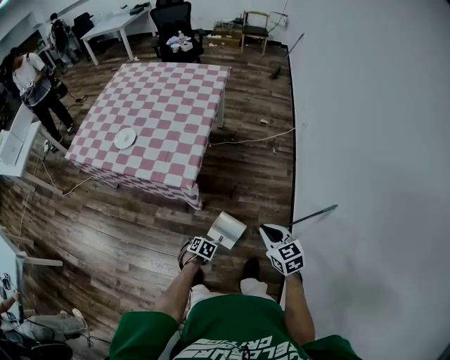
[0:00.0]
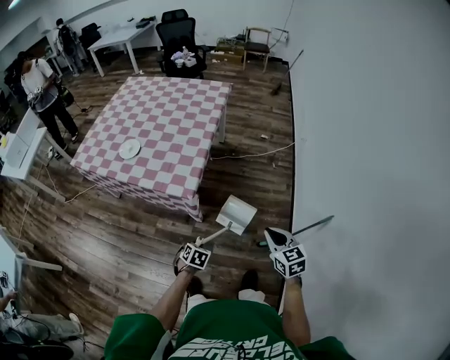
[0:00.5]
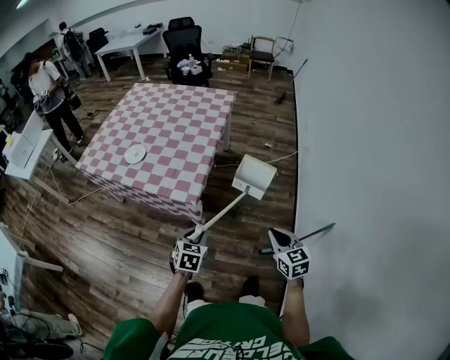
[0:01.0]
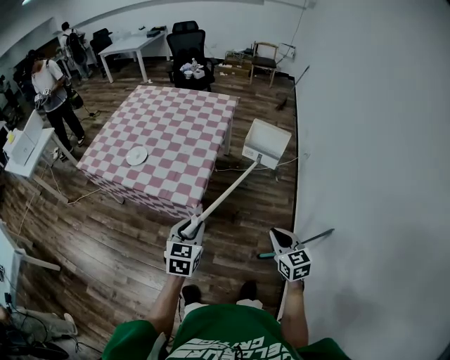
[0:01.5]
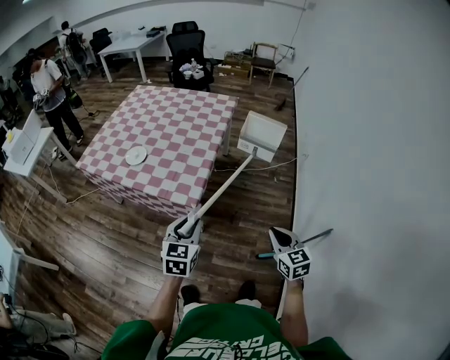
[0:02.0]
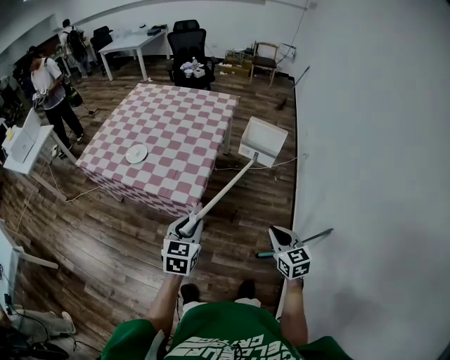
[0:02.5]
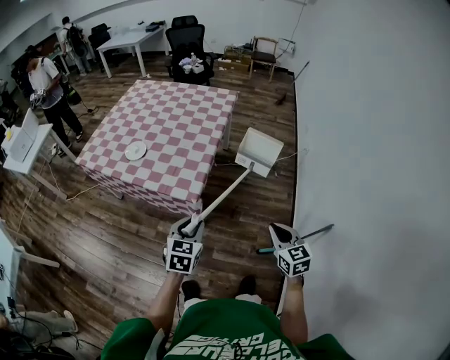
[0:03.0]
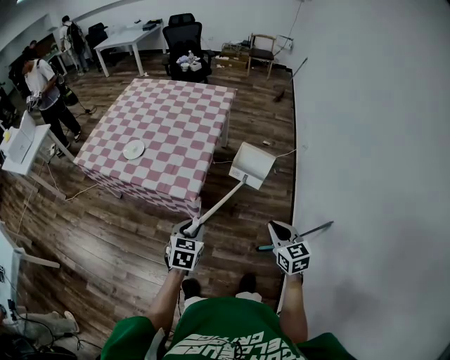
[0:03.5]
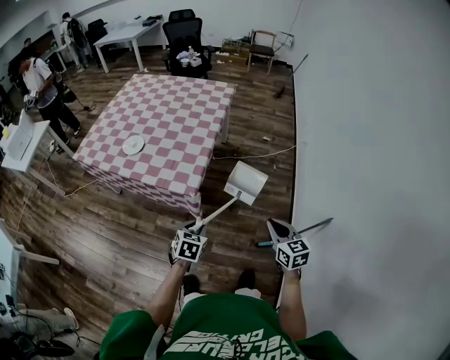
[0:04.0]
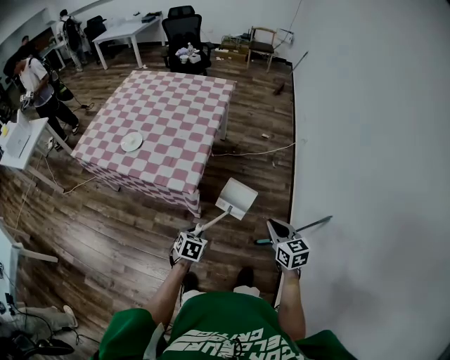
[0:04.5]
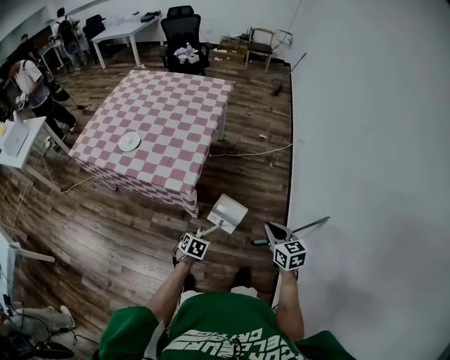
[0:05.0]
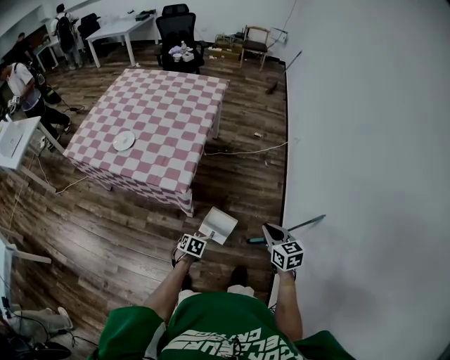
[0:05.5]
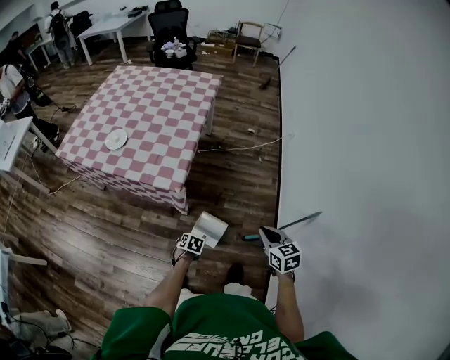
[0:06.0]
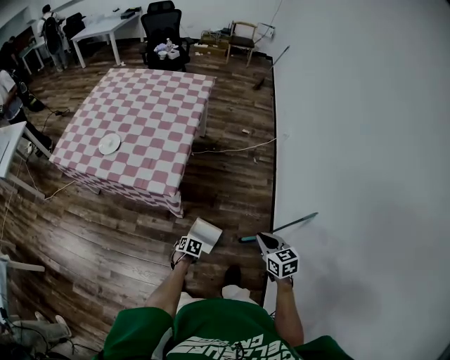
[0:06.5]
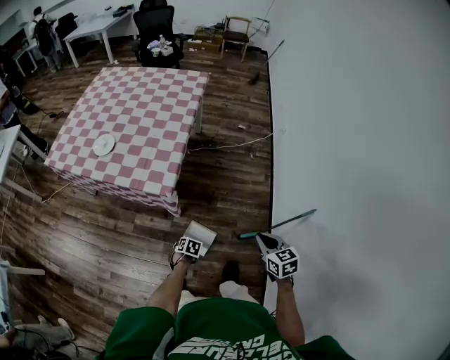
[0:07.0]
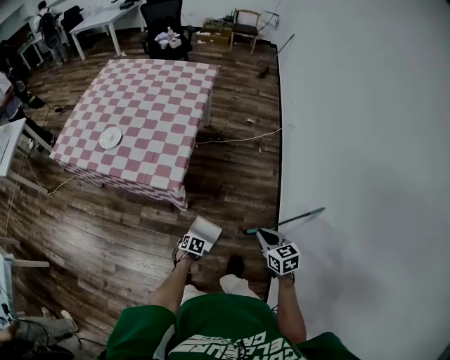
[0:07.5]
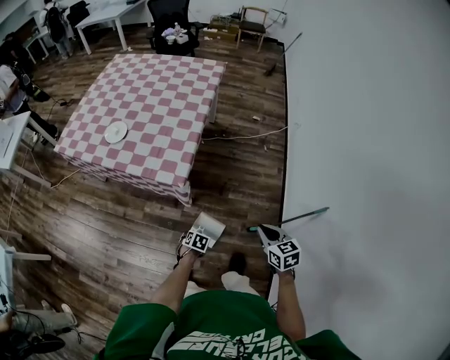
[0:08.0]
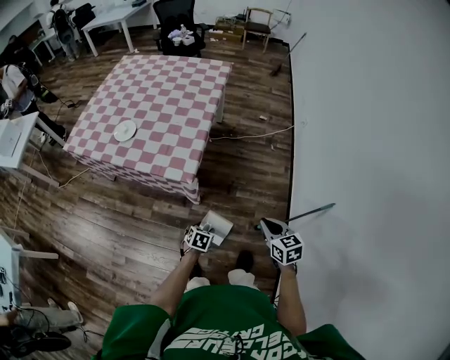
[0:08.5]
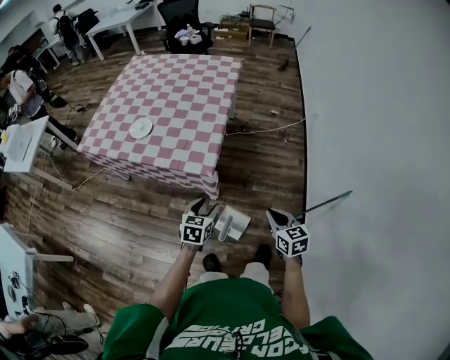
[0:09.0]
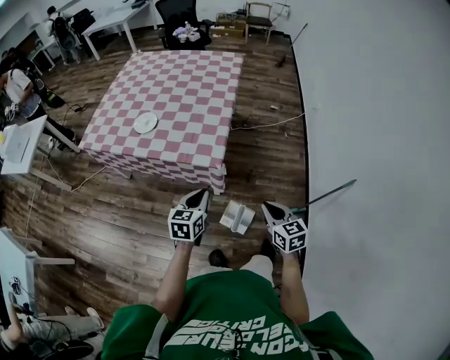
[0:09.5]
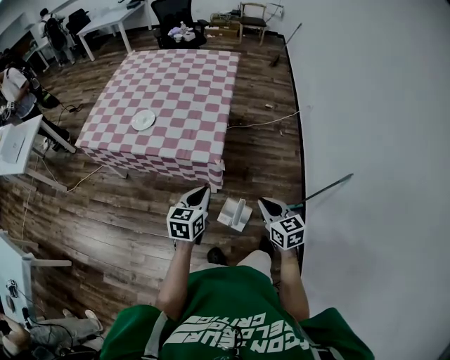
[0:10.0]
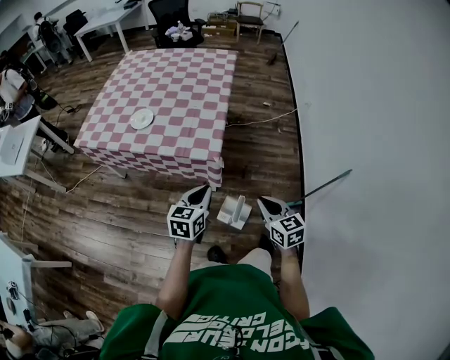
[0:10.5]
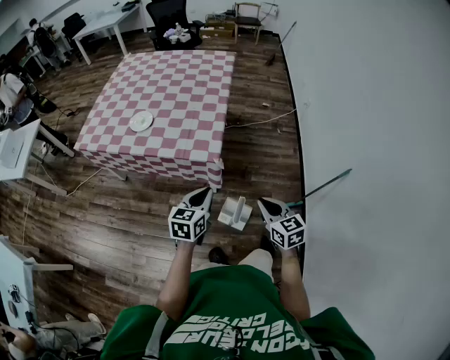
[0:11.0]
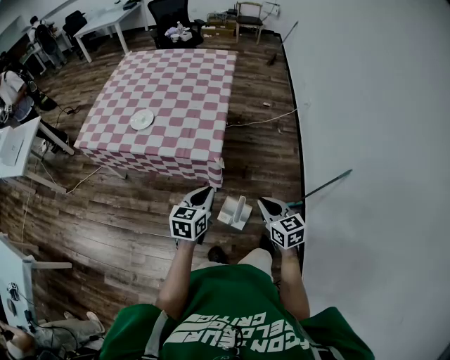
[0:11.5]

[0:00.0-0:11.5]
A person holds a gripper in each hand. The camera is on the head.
0:00.0 to 0:02.0: The right gripper goes about 10 cm upward. The left gripper goes roughly 40 cm upward, and points its fingers approximately 60 degrees further upward.
0:02.0 to 0:04.0: The left gripper moves downward, some 15 cm, and rotates approximately 20 degrees.
0:04.0 to 0:06.0: The right gripper travels downward by about 5 cm. Meanwhile the left gripper goes about 25 cm downward, and changes its angle by approximately 30 degrees.
0:06.0 to 0:07.5: There are only small adjustments of the grippers.
0:07.5 to 0:09.5: The right gripper is displaced to the left by some 20 cm. The left gripper moves upward and to the left, about 35 cm, tips its fingers upward by some 50 degrees, and opens and closes again.
0:09.5 to 0:11.5: The grippers make only small movements.

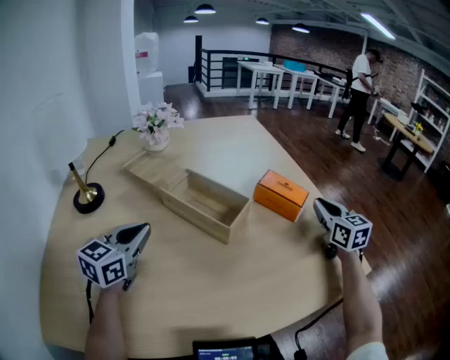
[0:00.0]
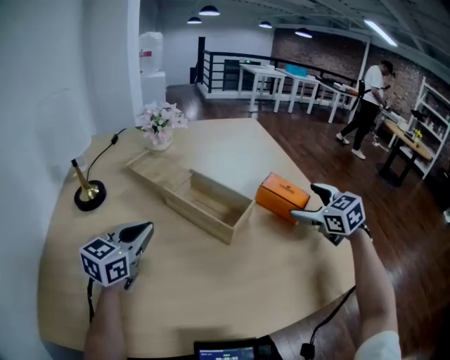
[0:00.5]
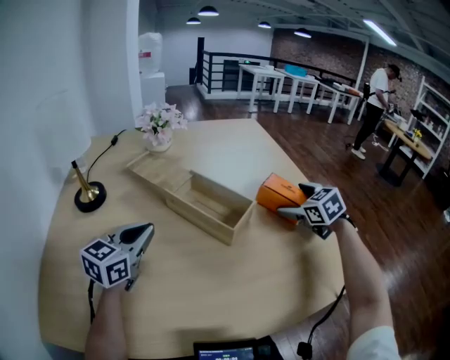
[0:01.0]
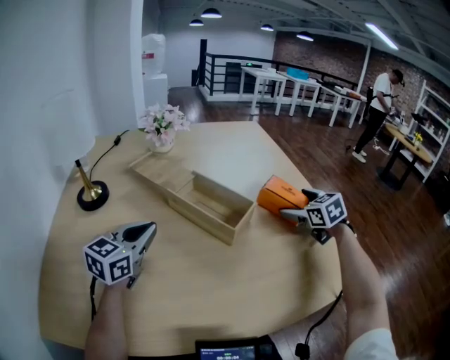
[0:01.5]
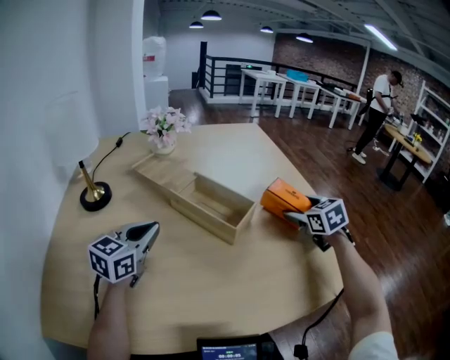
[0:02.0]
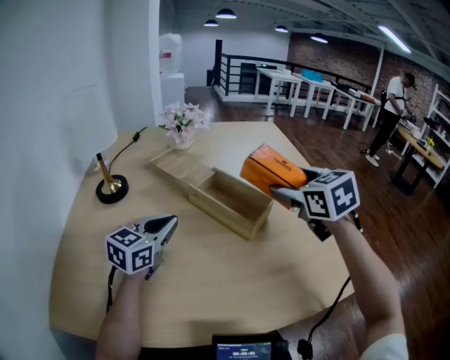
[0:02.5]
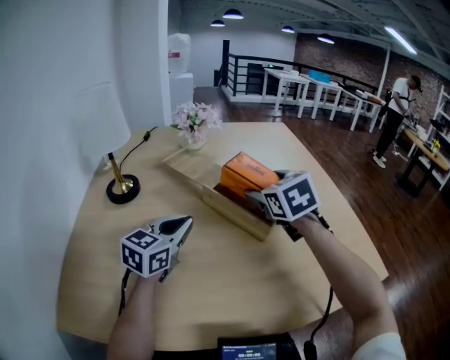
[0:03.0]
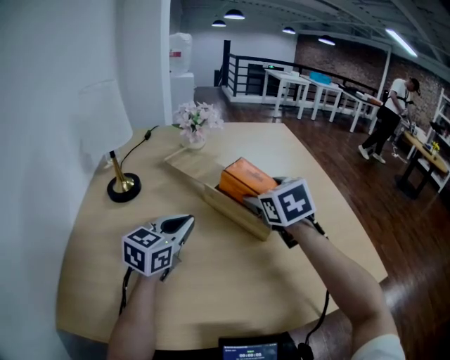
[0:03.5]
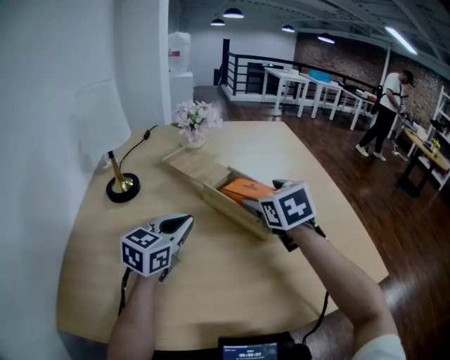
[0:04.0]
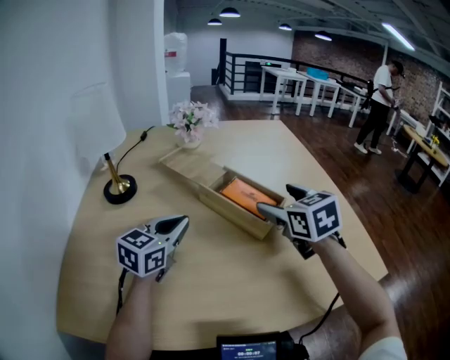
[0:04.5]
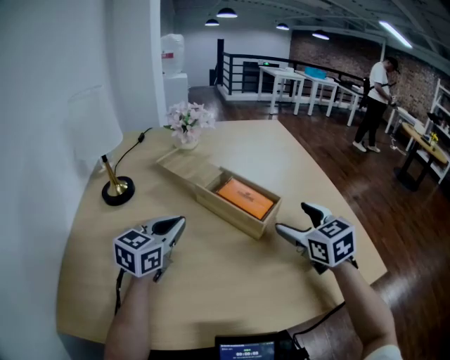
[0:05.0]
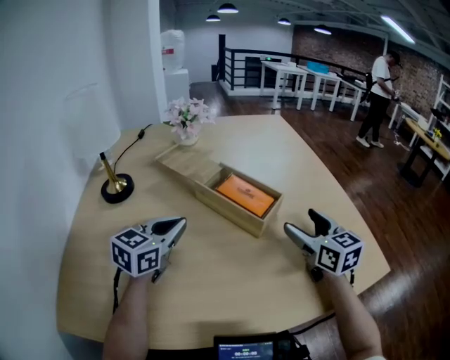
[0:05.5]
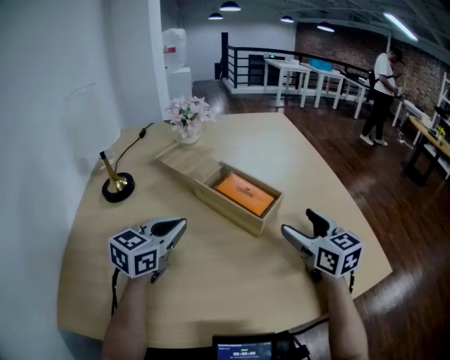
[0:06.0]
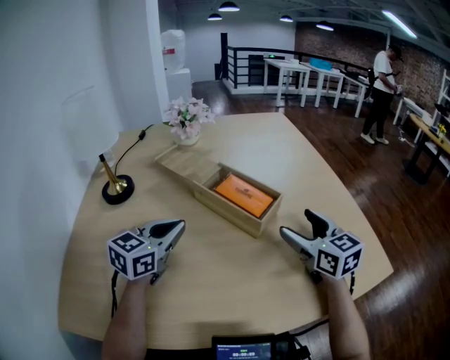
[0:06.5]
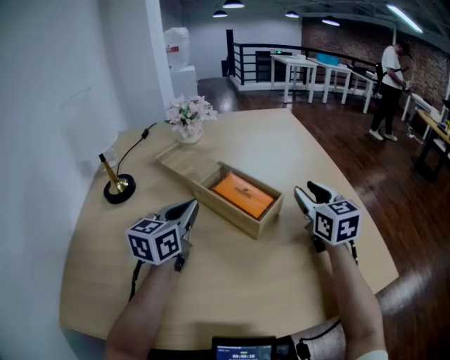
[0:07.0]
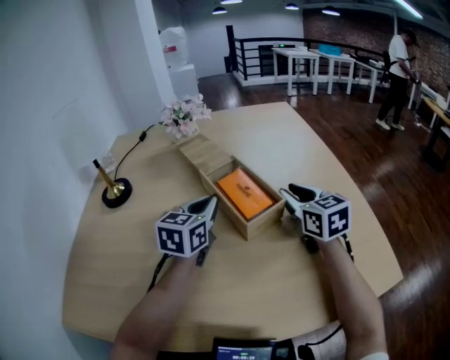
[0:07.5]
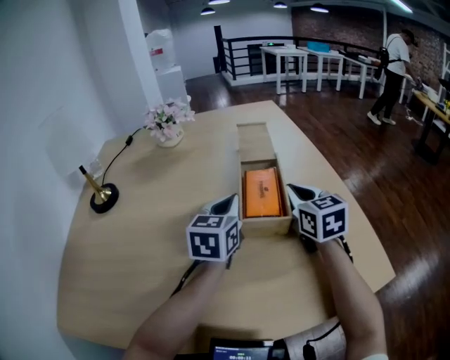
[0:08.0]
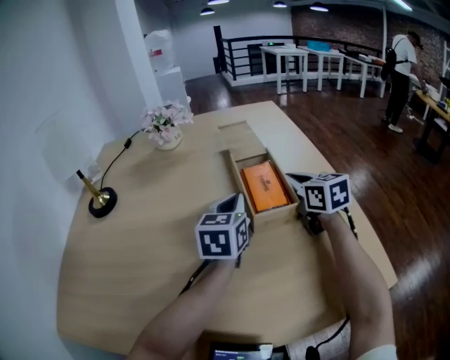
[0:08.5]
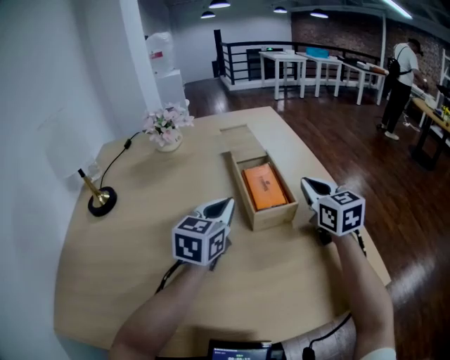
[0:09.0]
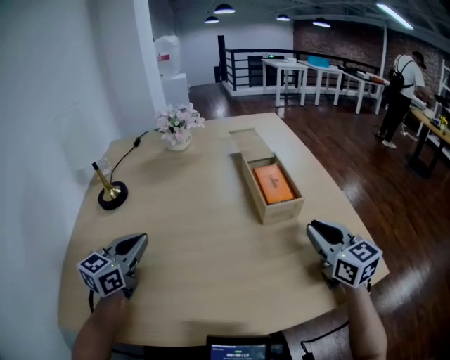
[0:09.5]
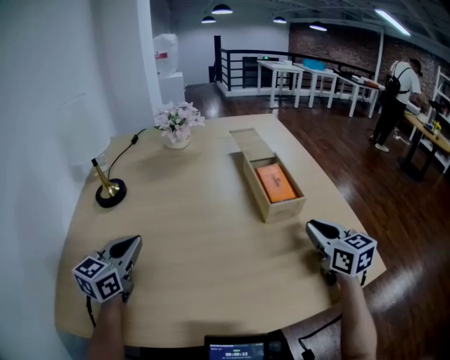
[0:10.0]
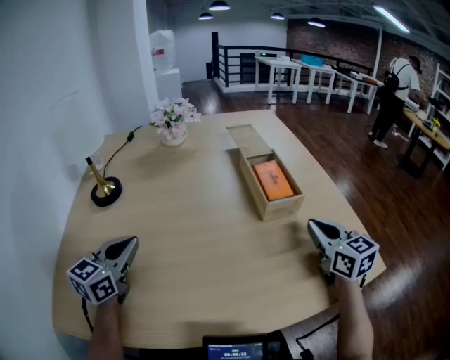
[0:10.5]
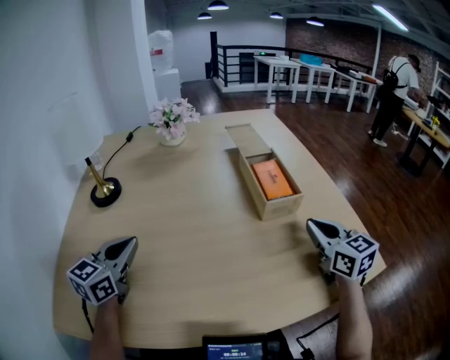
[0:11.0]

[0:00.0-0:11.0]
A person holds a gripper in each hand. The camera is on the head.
0:00.0 to 0:02.0: The right gripper travels to the left by approximately 10 cm, changes its angle by some 30 degrees, and opens.
0:02.0 to 0:03.5: The right gripper moves to the left, some 25 cm.
0:03.5 to 0:05.5: The right gripper shifts some 15 cm to the right and backward, and swivels about 30 degrees.
0:05.5 to 0:07.5: The left gripper is displaced to the right and forward by approximately 15 cm, while the right gripper is displaced forward by approximately 10 cm, and closes its fingers.
0:07.5 to 0:09.0: Both grippers travel together to the right, some 10 cm.
0:09.0 to 0:11.0: The right gripper travels backward by about 15 cm, while the left gripper heads to the left and backward, covering about 30 cm.

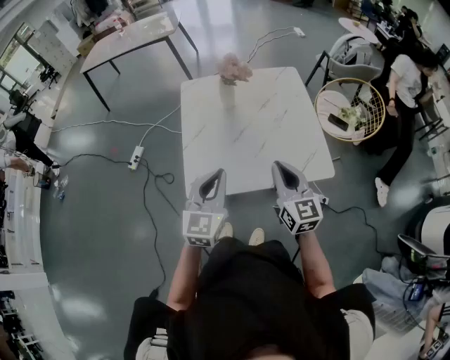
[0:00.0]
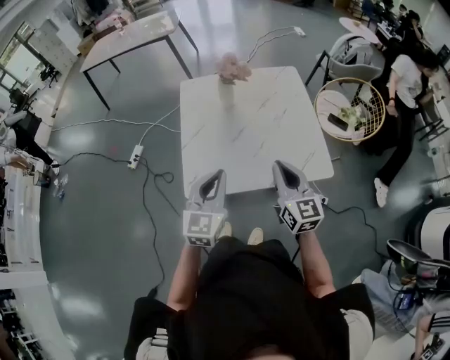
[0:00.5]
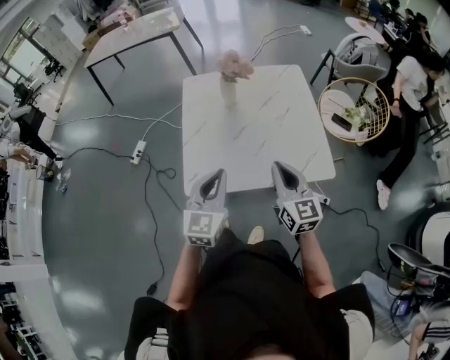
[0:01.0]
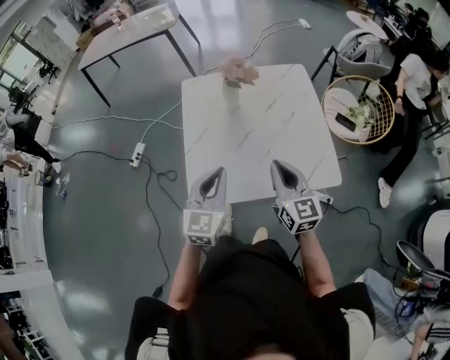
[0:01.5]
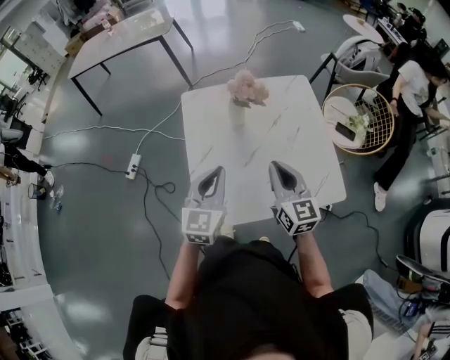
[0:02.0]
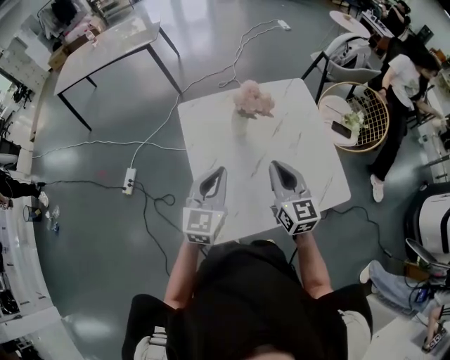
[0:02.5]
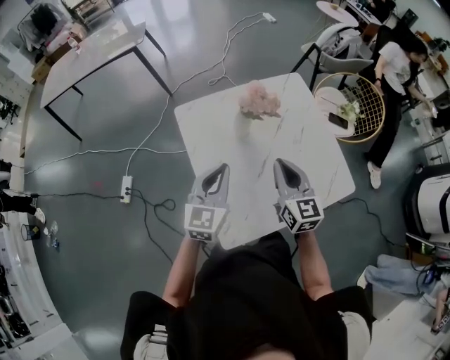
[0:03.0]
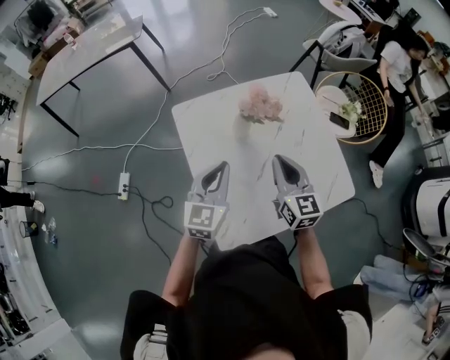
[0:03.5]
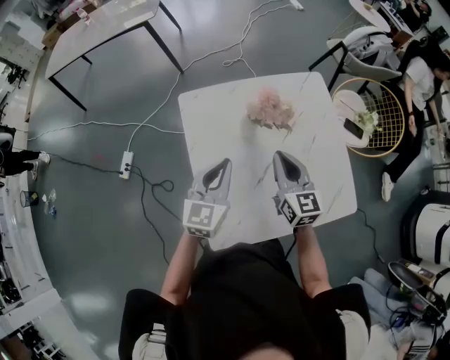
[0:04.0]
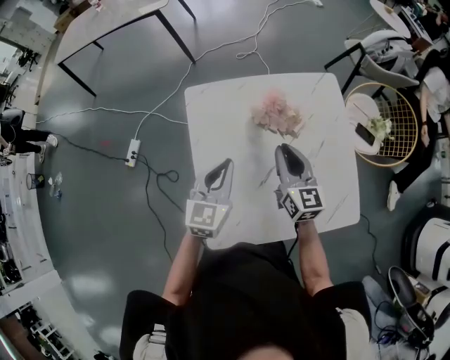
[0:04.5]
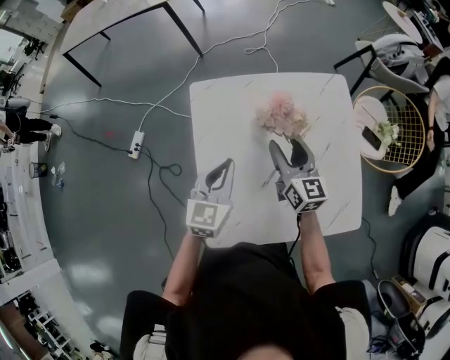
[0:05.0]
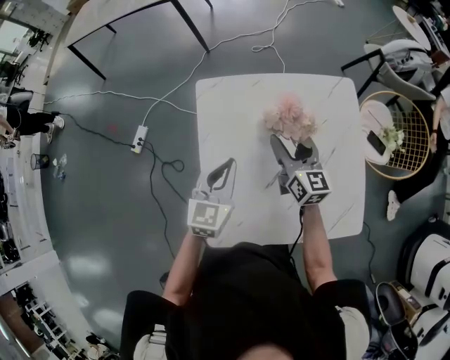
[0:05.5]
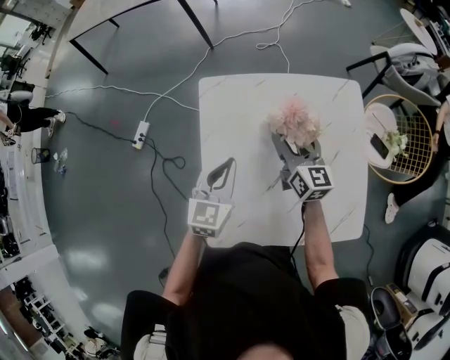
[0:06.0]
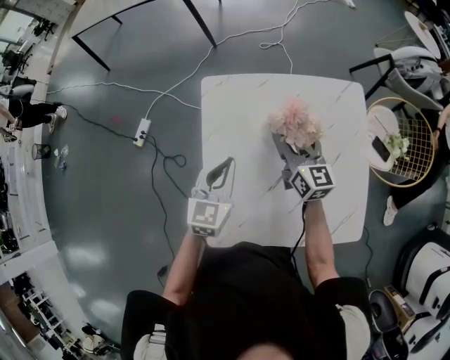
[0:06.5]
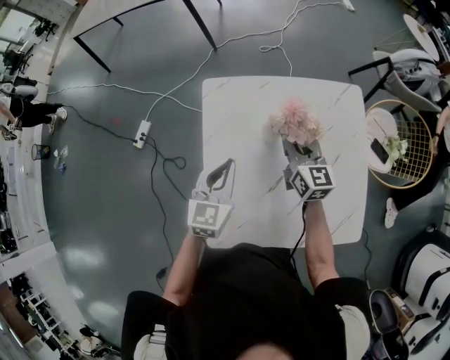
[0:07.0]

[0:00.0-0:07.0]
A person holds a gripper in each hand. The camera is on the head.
0:00.0 to 0:02.0: The right gripper travels forward and to the left by about 15 cm. The left gripper heads forward, covering some 15 cm.
0:02.0 to 0:03.5: The two grippers go about 15 cm forward and to the left.
0:03.5 to 0:05.0: The right gripper travels forward and downward by approximately 15 cm, and opens up. Meanwhile the left gripper moves downward and forward, approximately 10 cm.
0:05.0 to 0:07.0: The right gripper travels forward by approximately 5 cm, and closes.
